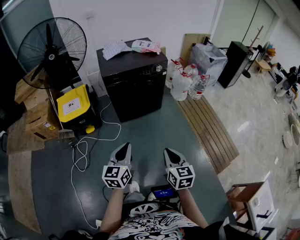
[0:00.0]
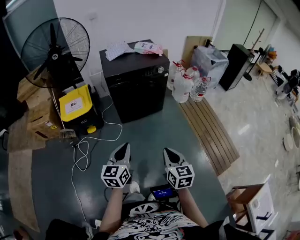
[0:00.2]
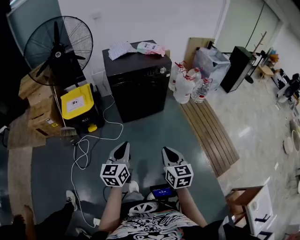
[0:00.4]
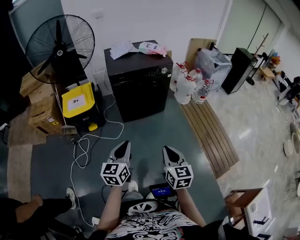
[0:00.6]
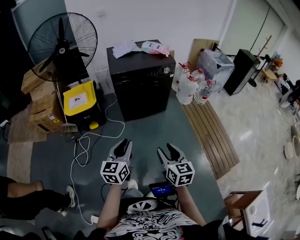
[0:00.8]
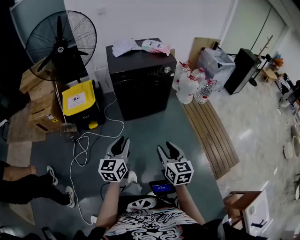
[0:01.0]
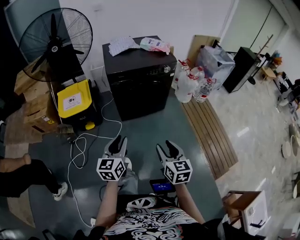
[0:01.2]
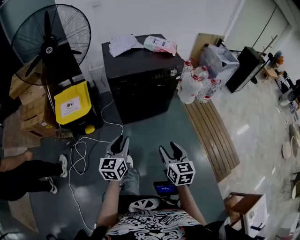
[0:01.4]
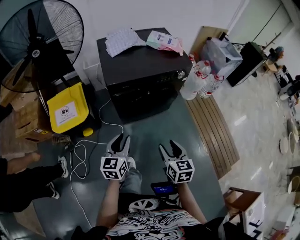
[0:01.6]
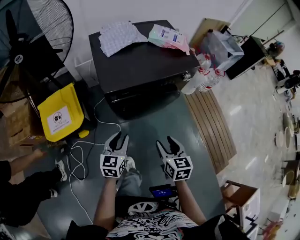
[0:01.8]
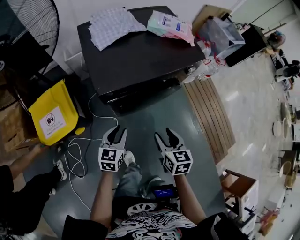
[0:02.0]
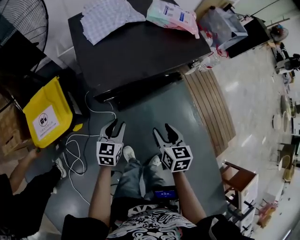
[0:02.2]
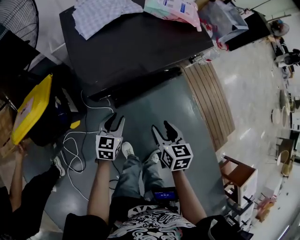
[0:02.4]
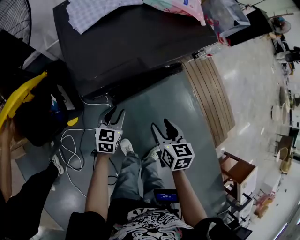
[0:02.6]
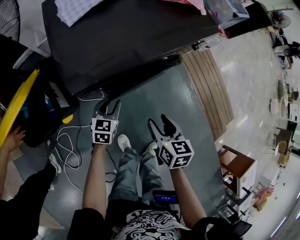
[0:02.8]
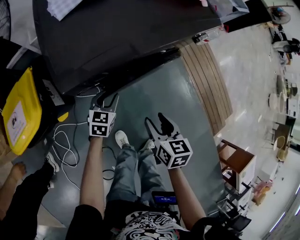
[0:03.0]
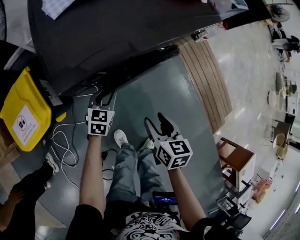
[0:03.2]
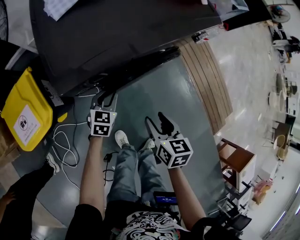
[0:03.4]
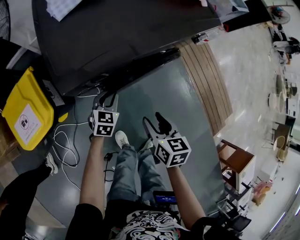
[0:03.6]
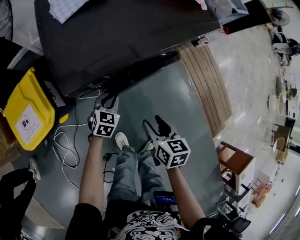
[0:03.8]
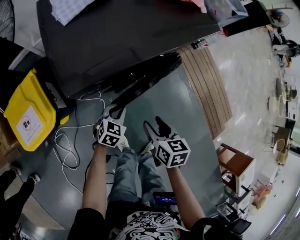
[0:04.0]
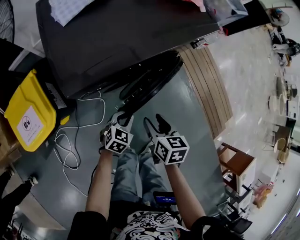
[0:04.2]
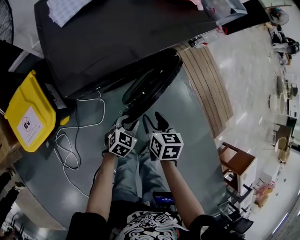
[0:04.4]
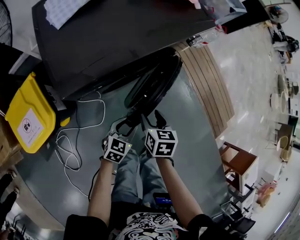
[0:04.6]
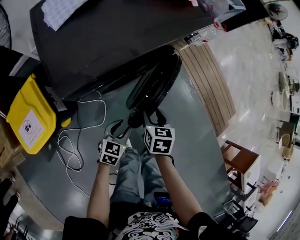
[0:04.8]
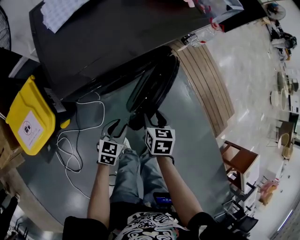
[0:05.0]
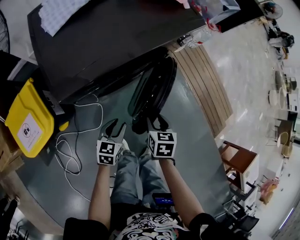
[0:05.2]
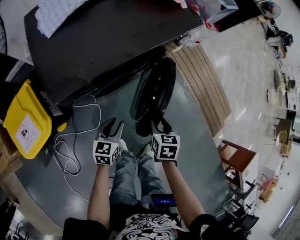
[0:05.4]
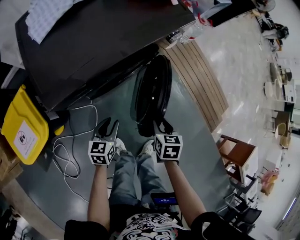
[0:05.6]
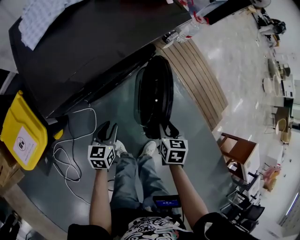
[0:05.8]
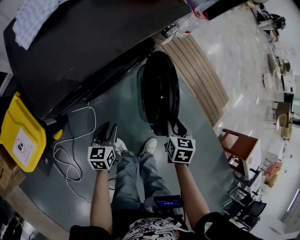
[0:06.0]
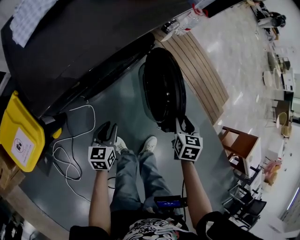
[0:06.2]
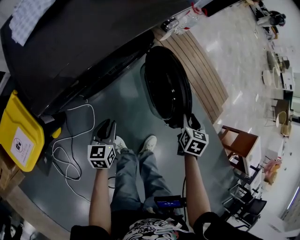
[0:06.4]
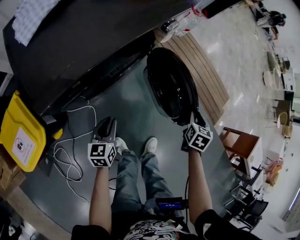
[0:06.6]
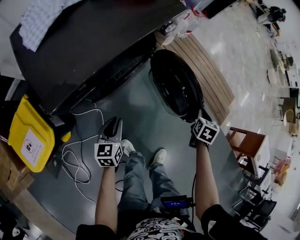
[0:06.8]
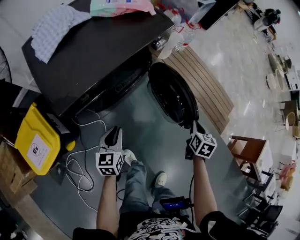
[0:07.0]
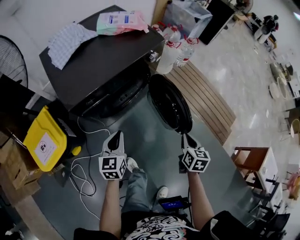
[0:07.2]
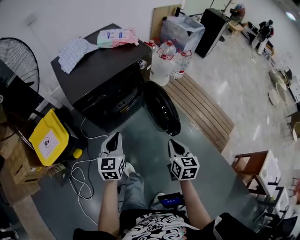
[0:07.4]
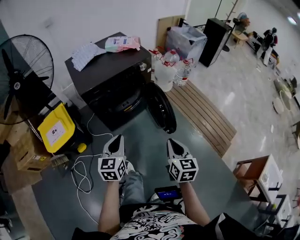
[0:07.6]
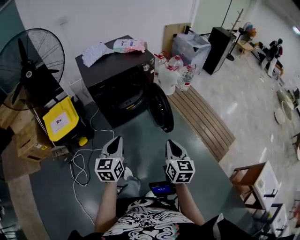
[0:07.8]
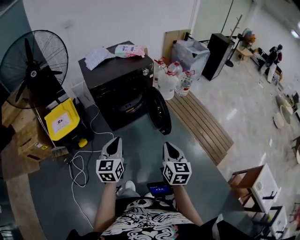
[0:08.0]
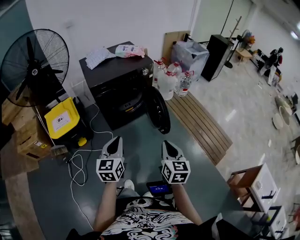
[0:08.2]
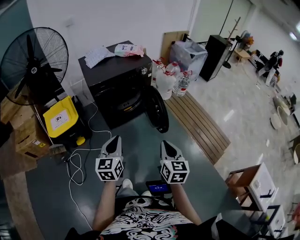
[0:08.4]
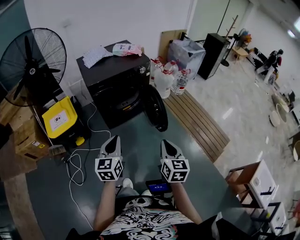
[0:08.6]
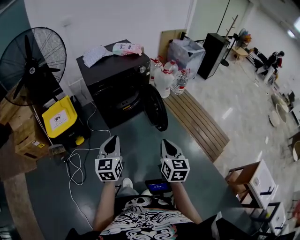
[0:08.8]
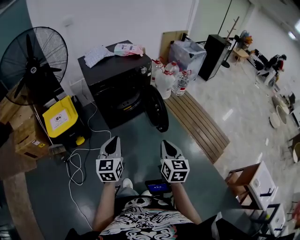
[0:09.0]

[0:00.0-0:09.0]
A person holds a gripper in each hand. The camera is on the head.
0:00.0 to 0:01.6: Both grippers travel together forward, approximately 25 cm. The right gripper opens up, while the left gripper opens.
0:01.6 to 0:03.0: The left gripper moves downward and forward, about 35 cm, and turns by about 30 degrees. Meanwhile the right gripper is displaced forward, downward and to the left by some 25 cm.
0:03.0 to 0:04.4: The left gripper moves to the right and backward, approximately 15 cm, and changes its angle by some 20 degrees.
0:04.4 to 0:06.0: The left gripper travels to the left by some 5 cm, and changes its angle by about 30 degrees; the right gripper shifts about 15 cm to the right, and swivels approximately 20 degrees.
0:06.0 to 0:07.6: The two grippers go roughly 30 cm upward. The left gripper rotates some 30 degrees, and closes its fingers; the right gripper tips its fingers upward by roughly 30 degrees, and closes its fingers.
0:07.6 to 0:09.0: Both grippers move backward and upward, roughly 15 cm.

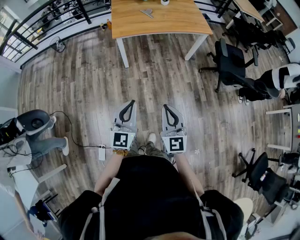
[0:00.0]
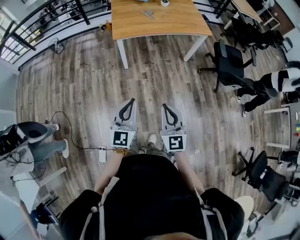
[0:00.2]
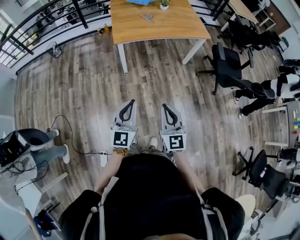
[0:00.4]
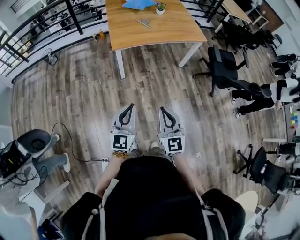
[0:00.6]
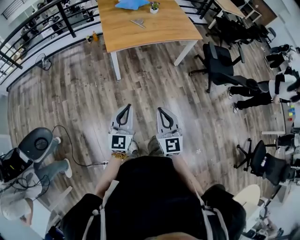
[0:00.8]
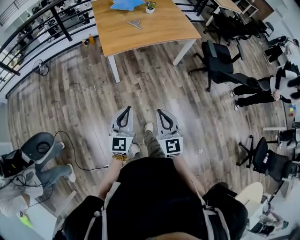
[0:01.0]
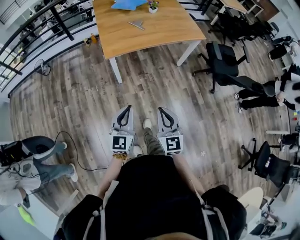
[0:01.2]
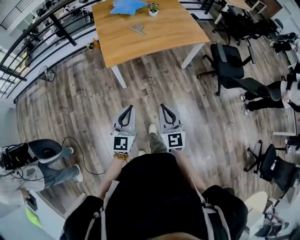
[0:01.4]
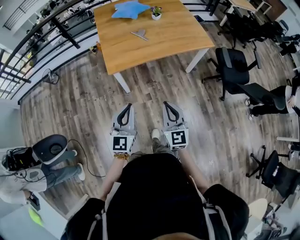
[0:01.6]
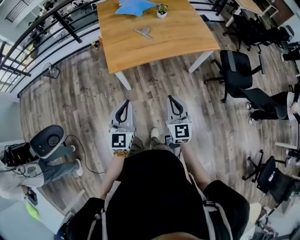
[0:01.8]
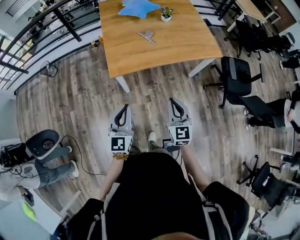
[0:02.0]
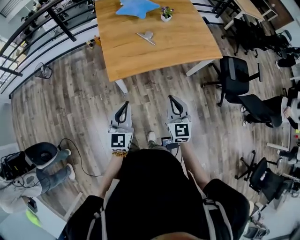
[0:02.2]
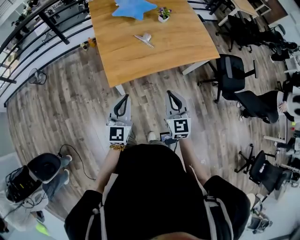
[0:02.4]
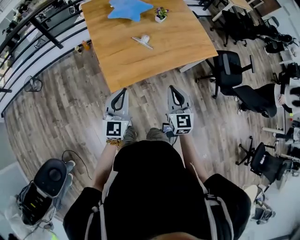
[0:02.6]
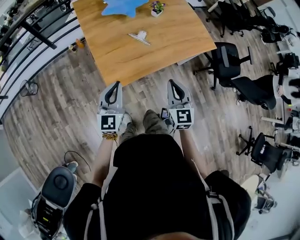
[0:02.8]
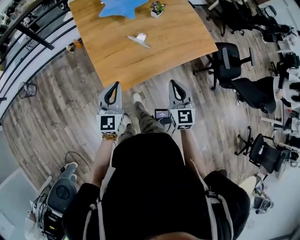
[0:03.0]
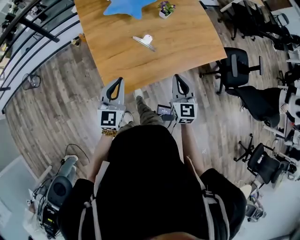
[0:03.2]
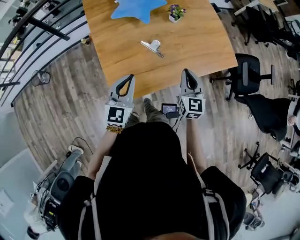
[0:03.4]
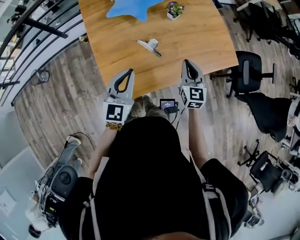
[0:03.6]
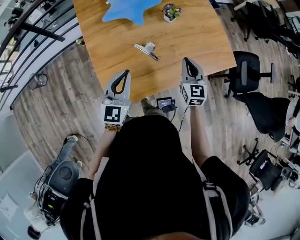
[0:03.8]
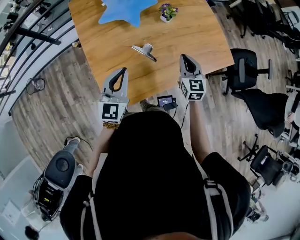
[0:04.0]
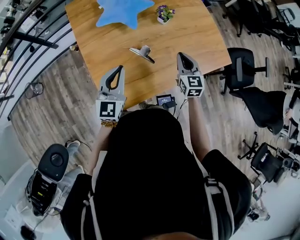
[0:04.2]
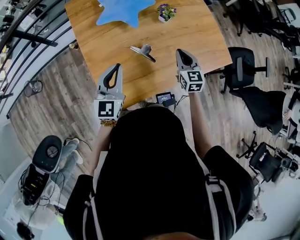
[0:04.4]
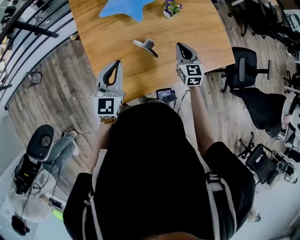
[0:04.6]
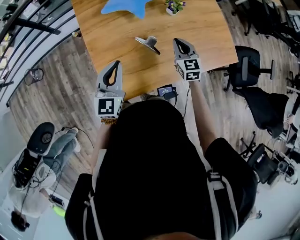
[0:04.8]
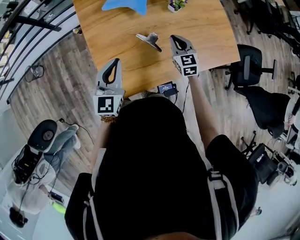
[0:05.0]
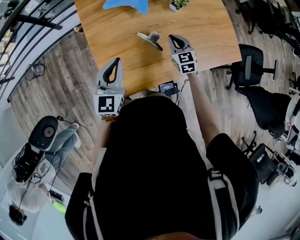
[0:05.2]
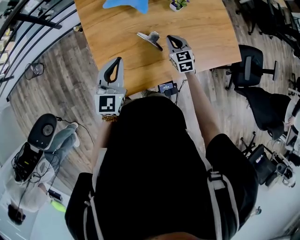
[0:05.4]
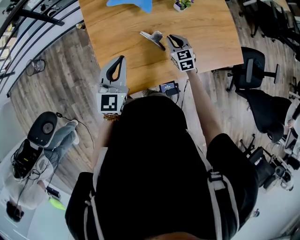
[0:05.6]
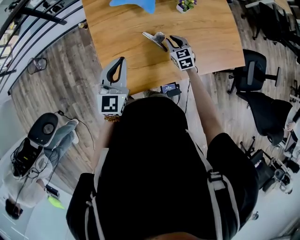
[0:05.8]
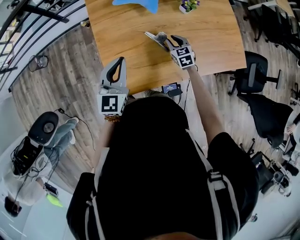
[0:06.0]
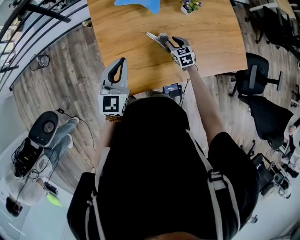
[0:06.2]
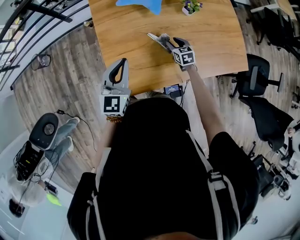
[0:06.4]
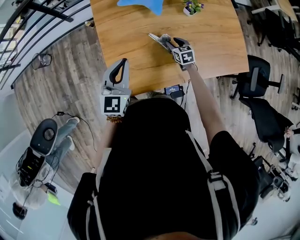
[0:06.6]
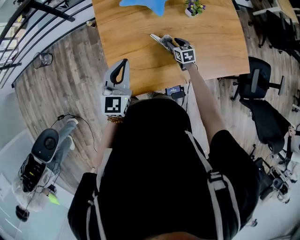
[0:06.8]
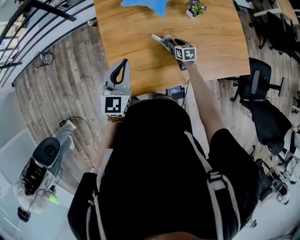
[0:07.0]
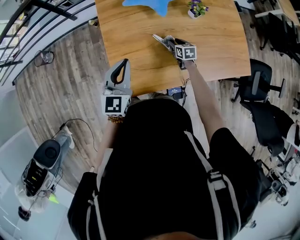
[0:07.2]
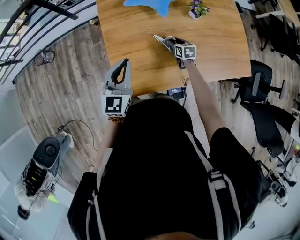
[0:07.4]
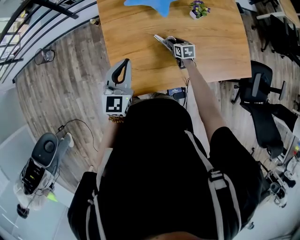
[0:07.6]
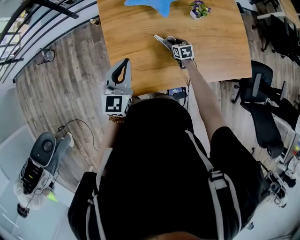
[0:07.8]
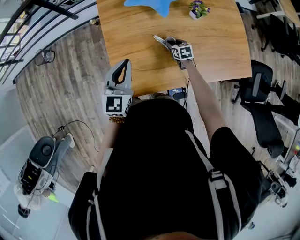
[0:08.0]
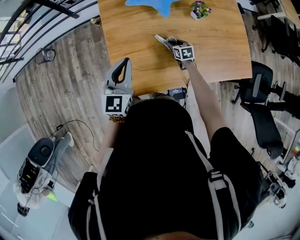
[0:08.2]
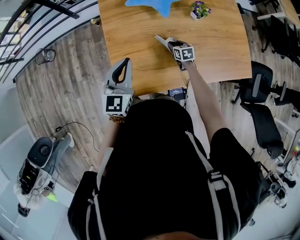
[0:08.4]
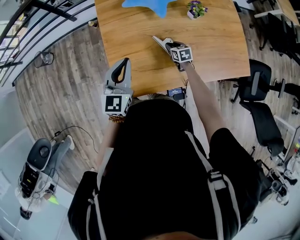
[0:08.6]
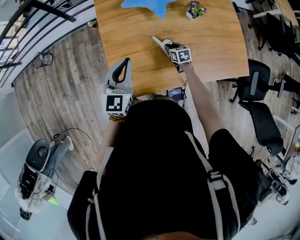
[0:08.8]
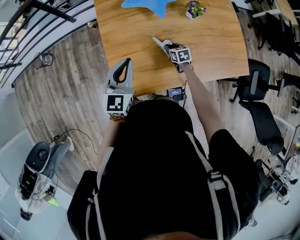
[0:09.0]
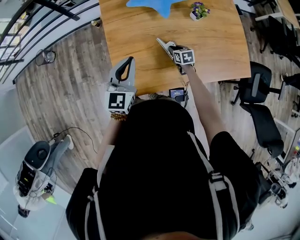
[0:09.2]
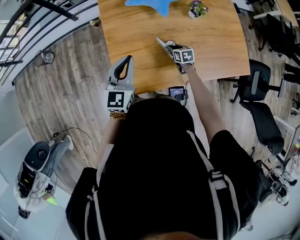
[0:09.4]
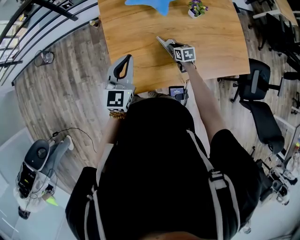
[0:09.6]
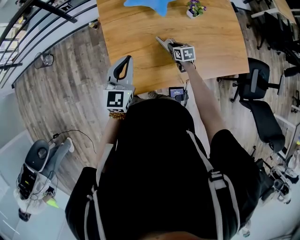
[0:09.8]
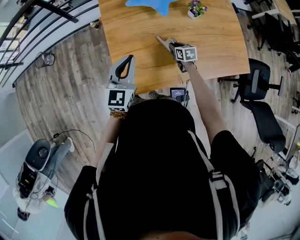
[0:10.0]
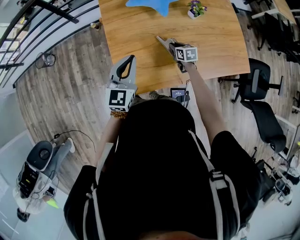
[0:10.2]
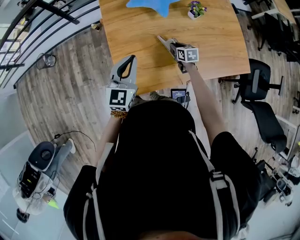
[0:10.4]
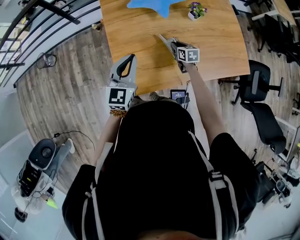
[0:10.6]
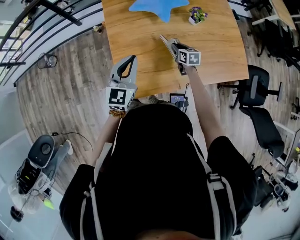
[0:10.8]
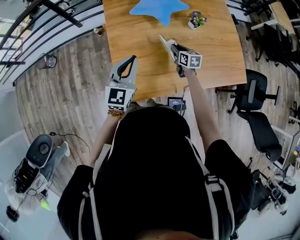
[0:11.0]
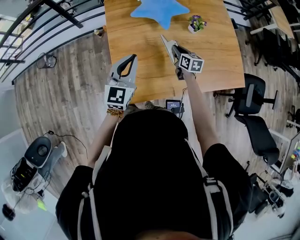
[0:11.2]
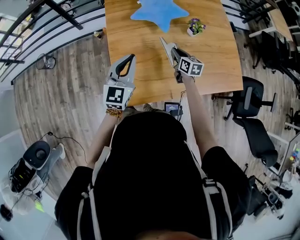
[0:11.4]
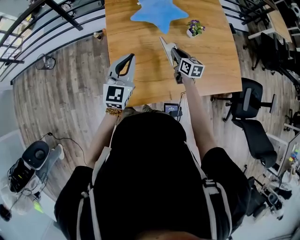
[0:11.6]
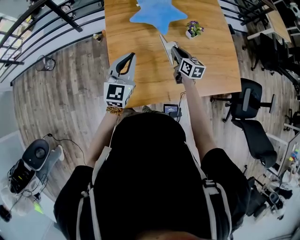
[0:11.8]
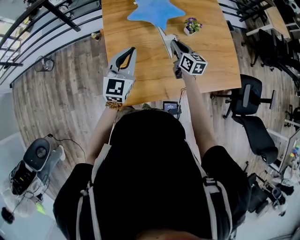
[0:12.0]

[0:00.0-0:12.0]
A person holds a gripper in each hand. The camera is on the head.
0:00.0 to 0:01.6: The grippers both shift forward by approximately 35 cm.
0:01.6 to 0:03.0: The right gripper moves forward, approximately 35 cm. The left gripper heads forward and to the left, covering some 40 cm.
0:03.0 to 0:04.4: The two grippers go some 30 cm forward.
0:04.4 to 0:06.0: The right gripper travels downward and to the left by approximately 20 cm, changes its angle by roughly 30 degrees, and opens up.
0:06.0 to 0:07.6: The right gripper is displaced downward by about 10 cm, and changes its angle by about 20 degrees.
0:07.6 to 0:10.4: The grippers make only small movements.
0:10.4 to 0:12.0: The left gripper moves forward, roughly 5 cm. Meanwhile the right gripper heads upward, covering roughly 20 cm, and turns by about 30 degrees.

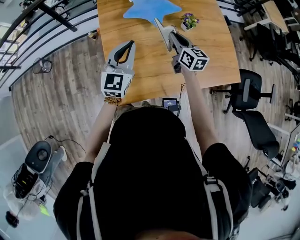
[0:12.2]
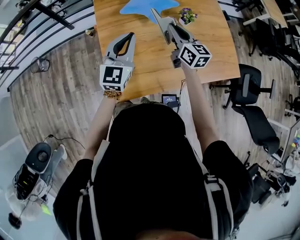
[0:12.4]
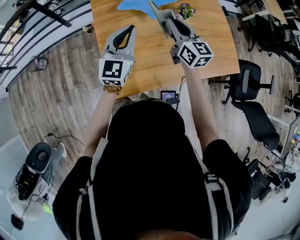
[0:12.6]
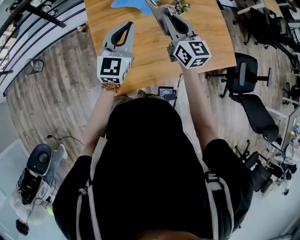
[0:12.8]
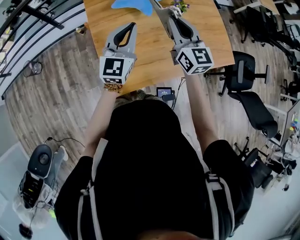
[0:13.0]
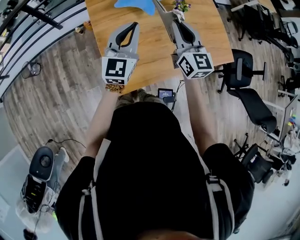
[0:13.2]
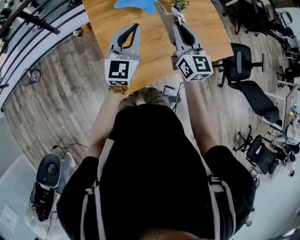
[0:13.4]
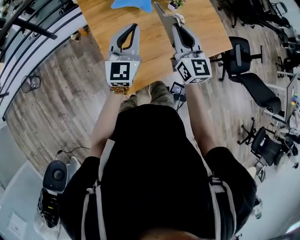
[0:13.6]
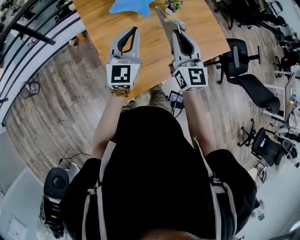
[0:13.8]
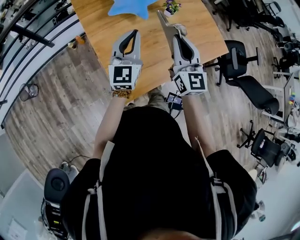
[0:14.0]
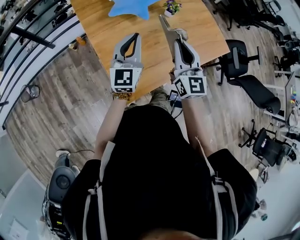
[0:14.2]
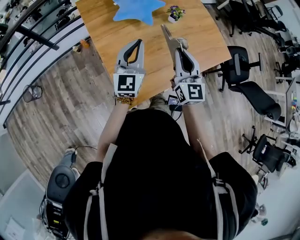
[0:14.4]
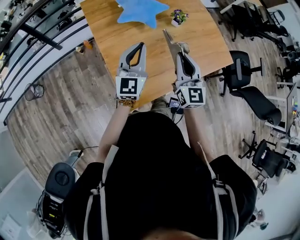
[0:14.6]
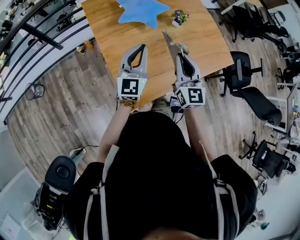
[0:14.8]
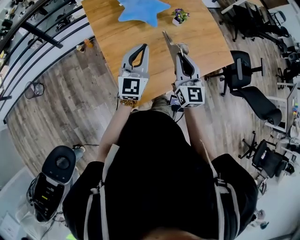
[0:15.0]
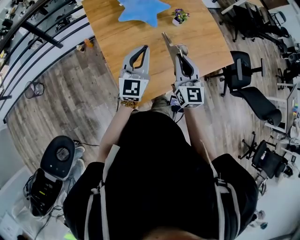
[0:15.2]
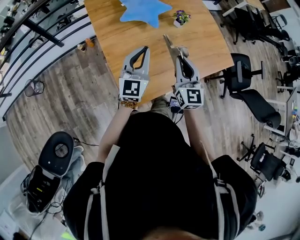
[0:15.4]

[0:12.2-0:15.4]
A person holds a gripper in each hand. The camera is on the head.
0:12.2 to 0:13.8: The left gripper ends up approximately 5 cm from where it was. Meanwhile the right gripper heads backward and upward, covering about 20 cm, and changes its angle by about 40 degrees.
0:13.8 to 0:15.4: The right gripper heads downward, covering some 5 cm.
